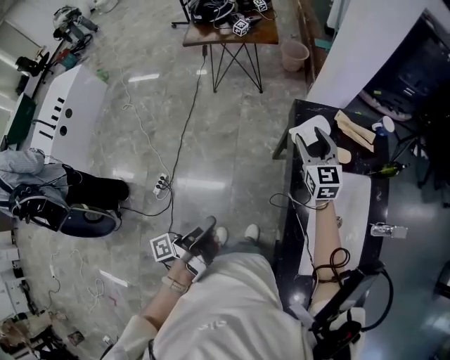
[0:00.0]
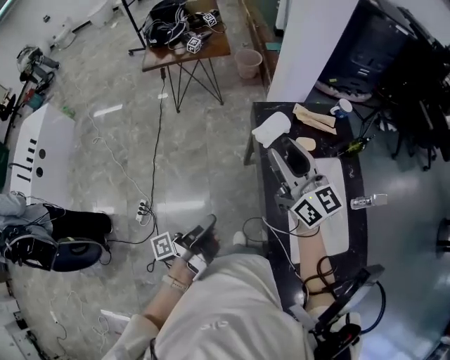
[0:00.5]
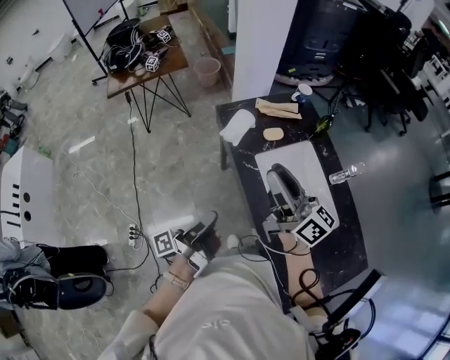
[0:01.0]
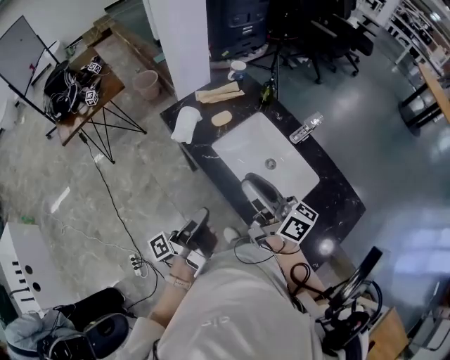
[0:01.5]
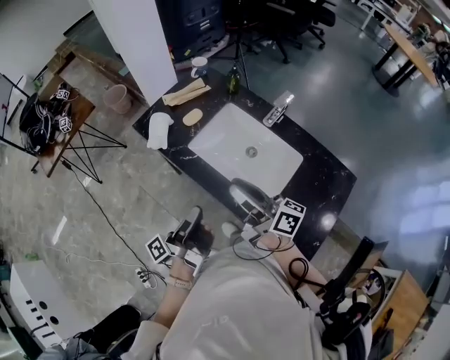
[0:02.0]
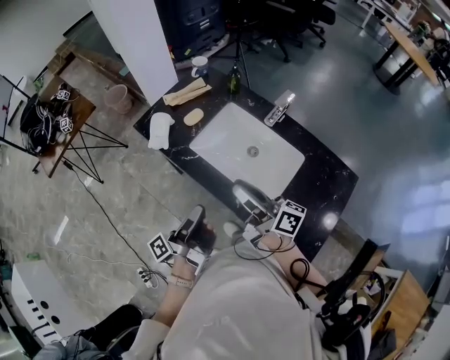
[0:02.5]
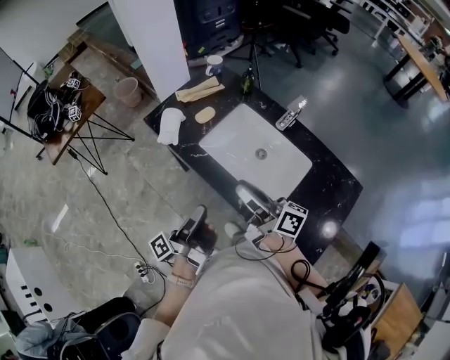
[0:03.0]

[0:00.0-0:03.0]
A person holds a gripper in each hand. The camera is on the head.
0:00.0 to 0:01.5: The right gripper changes place by approximately 35 cm, rolls clockwise, seen from behind, by some 50 degrees, and closes.
0:01.5 to 0:03.0: The right gripper moves downward, some 5 cm.

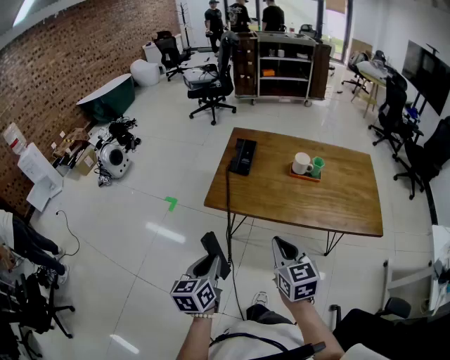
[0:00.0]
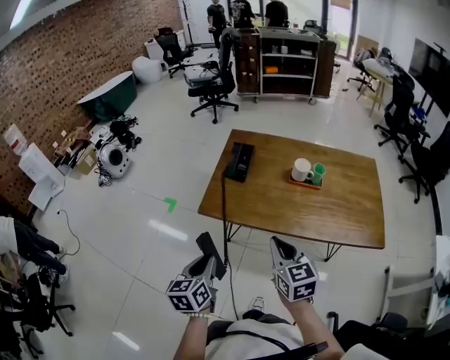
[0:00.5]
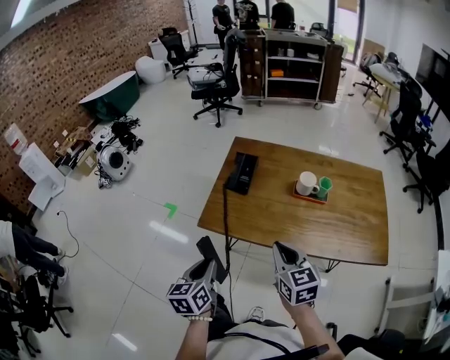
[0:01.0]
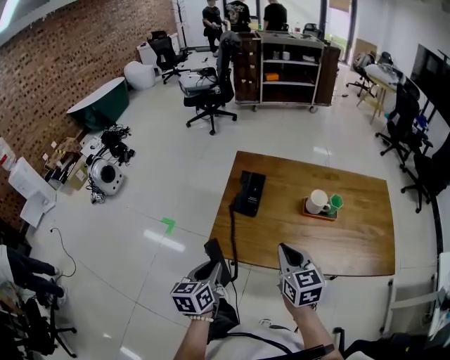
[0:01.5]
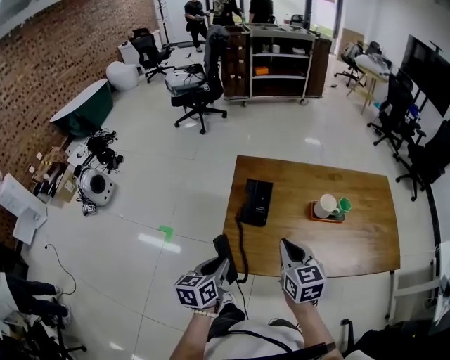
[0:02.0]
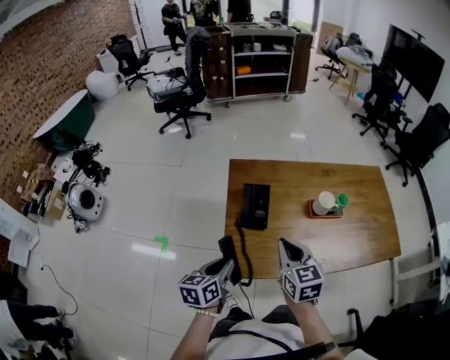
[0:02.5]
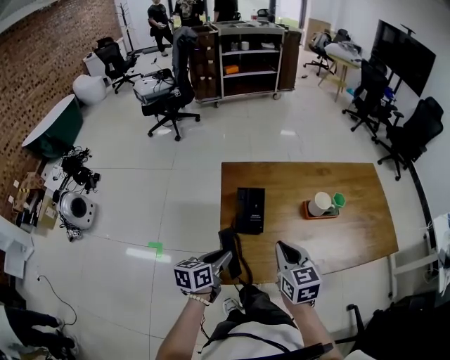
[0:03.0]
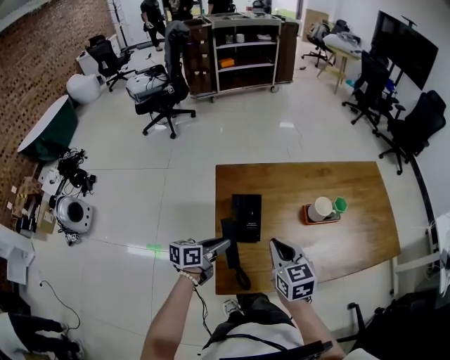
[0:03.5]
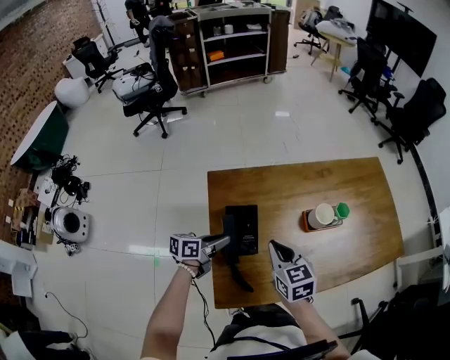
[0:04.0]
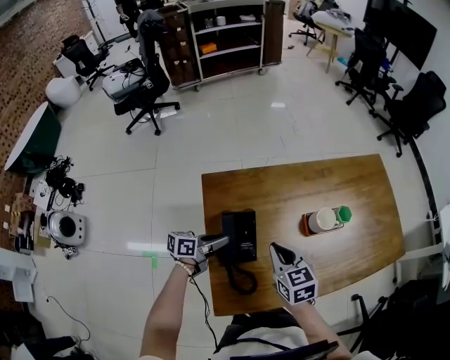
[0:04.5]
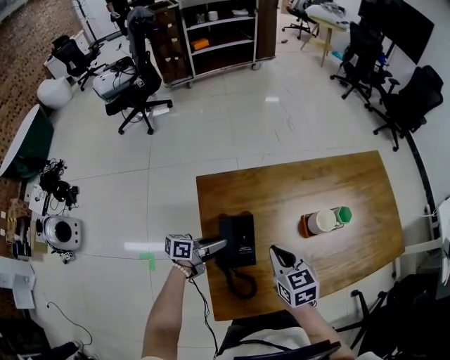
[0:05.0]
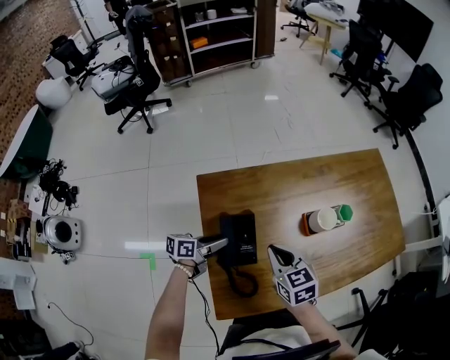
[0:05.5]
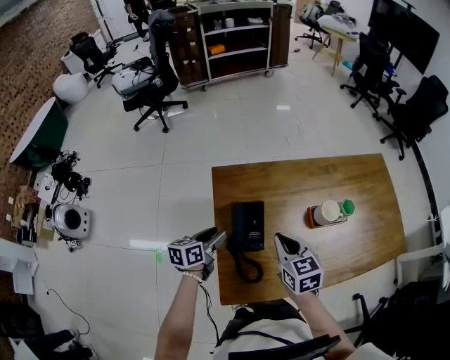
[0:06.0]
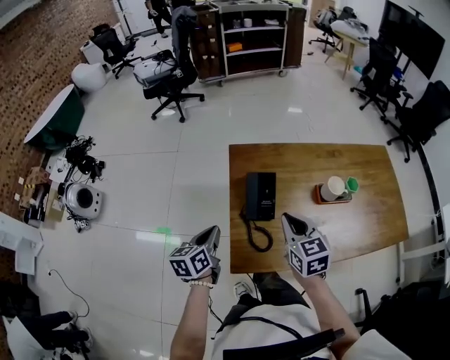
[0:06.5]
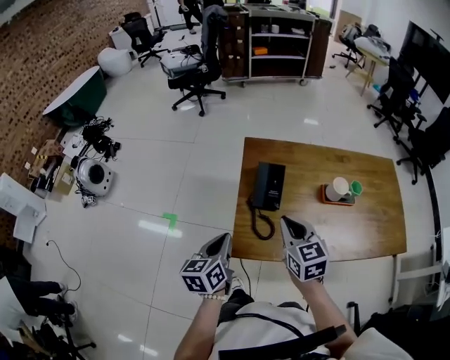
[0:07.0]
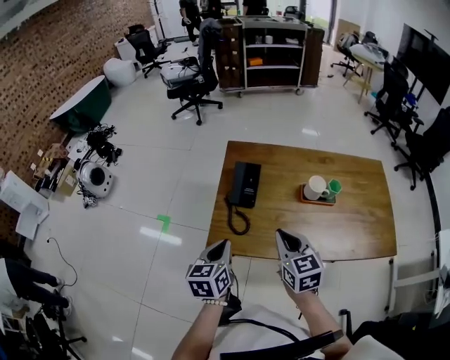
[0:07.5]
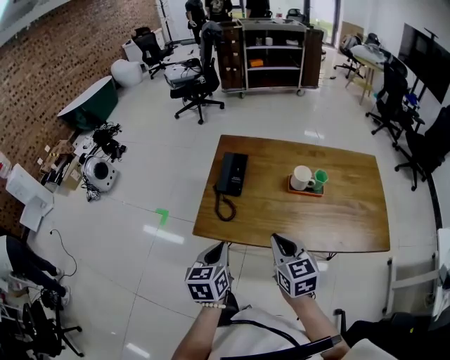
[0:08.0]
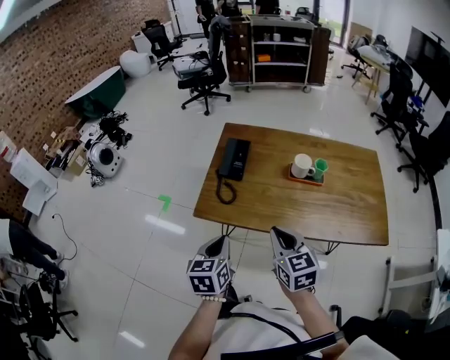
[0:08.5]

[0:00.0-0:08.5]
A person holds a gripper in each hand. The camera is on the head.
0:00.0 to 0:02.0: The grippers both shift forward by about 30 cm.
0:02.0 to 0:04.0: The left gripper changes place by about 25 cm, and rotates approximately 40 degrees. The right gripper shifts by some 15 cm.
0:04.0 to 0:06.5: The right gripper moves about 5 cm; the left gripper changes place by roughly 15 cm, rotates some 40 degrees, and opens, then closes once more.
0:06.5 to 0:08.5: The two grippers go roughly 30 cm backward and to the right. The left gripper changes its angle by approximately 20 degrees.

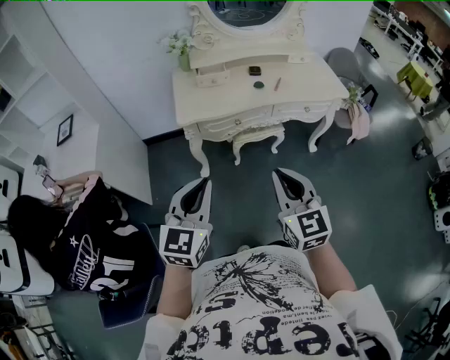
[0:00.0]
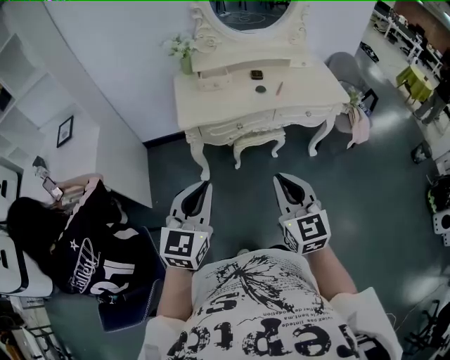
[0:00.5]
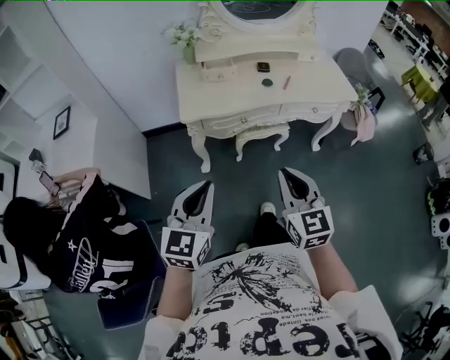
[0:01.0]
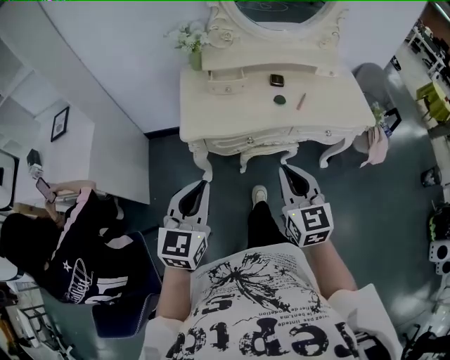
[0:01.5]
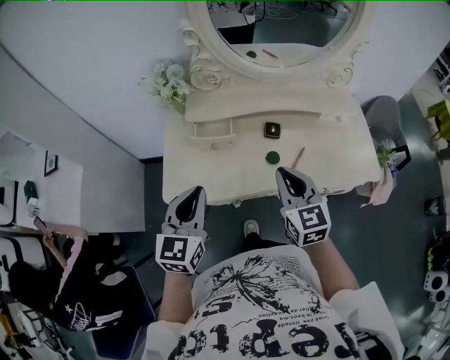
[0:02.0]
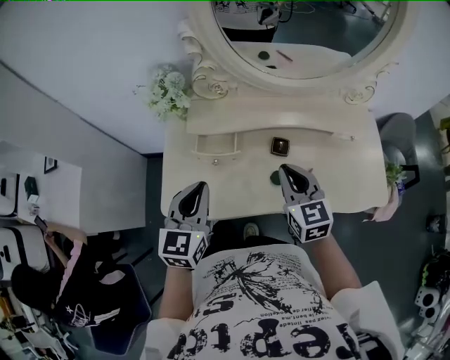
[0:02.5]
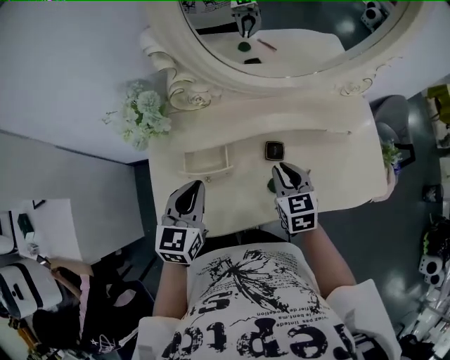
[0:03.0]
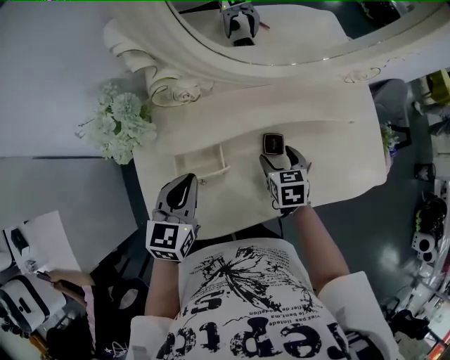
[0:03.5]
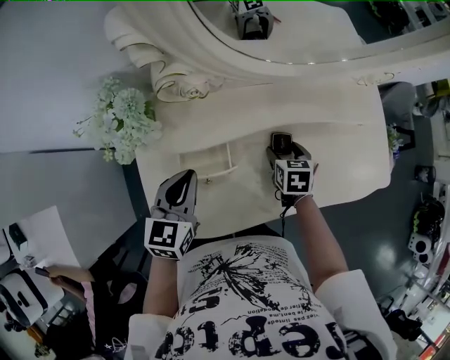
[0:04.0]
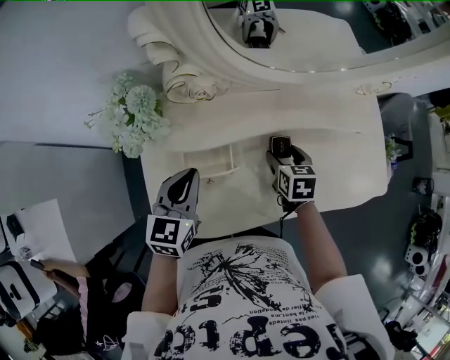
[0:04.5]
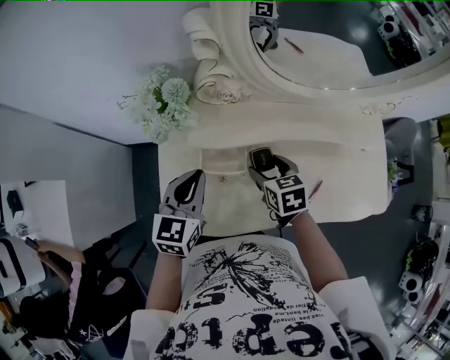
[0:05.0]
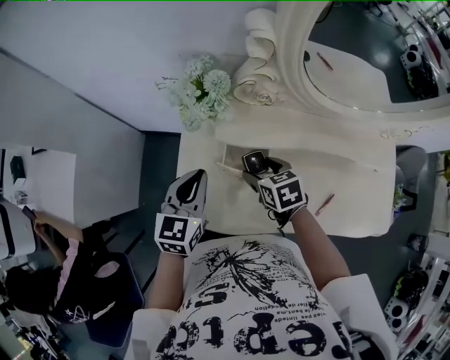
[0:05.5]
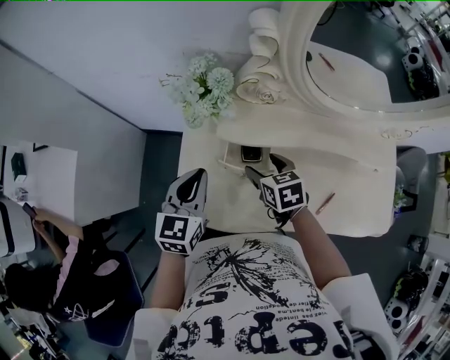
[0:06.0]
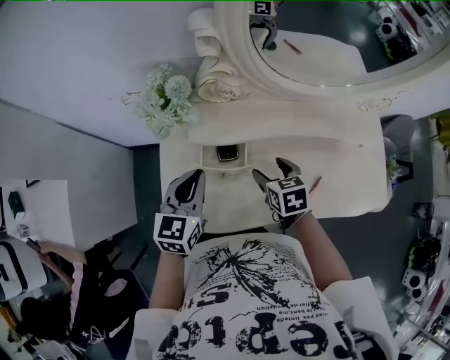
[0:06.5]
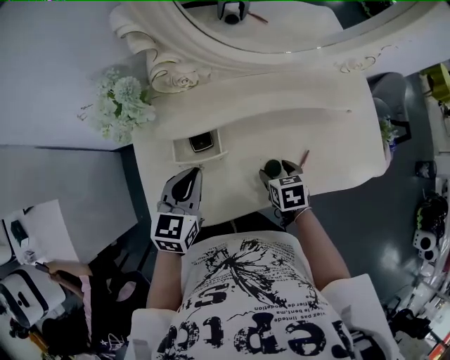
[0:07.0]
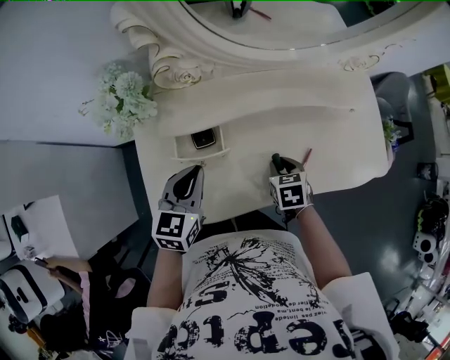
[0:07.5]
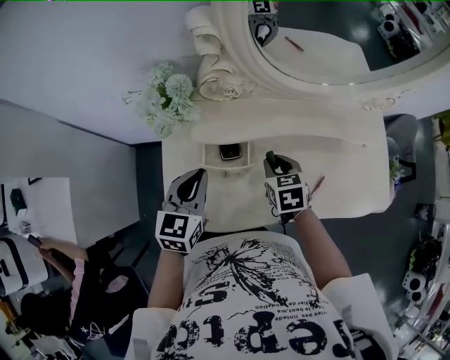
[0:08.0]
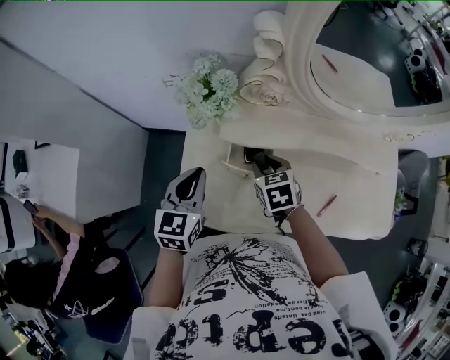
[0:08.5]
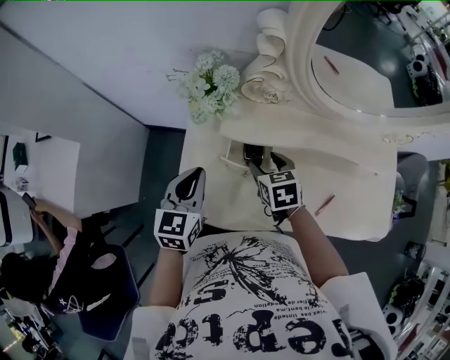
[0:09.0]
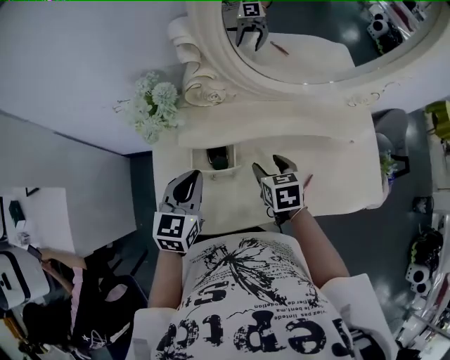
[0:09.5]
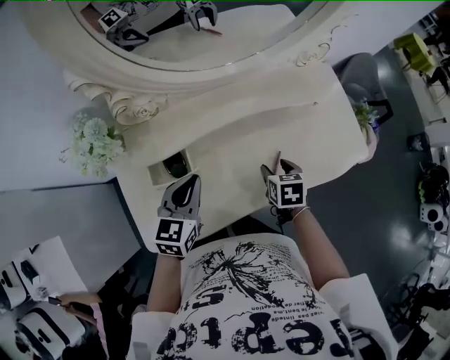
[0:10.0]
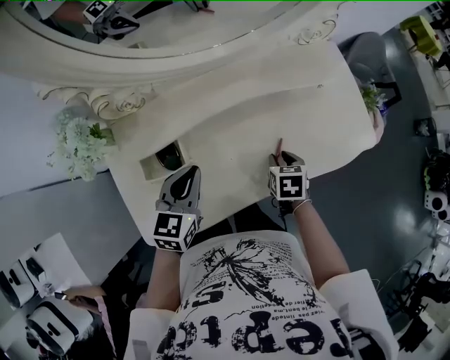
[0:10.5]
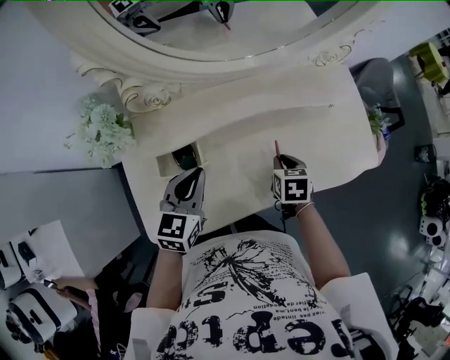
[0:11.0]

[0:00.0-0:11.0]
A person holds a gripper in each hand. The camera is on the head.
0:00.0 to 0:02.0: The pair of grippers is taken forward, some 40 cm.
0:02.0 to 0:03.5: The grippers both shift forward and downward by roughly 25 cm. The right gripper angles its fingers downward, by about 30 degrees, and opens.
0:03.5 to 0:05.5: The right gripper moves roughly 20 cm, and turns by about 30 degrees. Meanwhile the left gripper shifts by approximately 10 cm.
0:05.5 to 0:07.5: The left gripper shifts by about 10 cm, while the right gripper shifts by some 20 cm, swivels roughly 30 degrees, and closes up.
0:07.5 to 0:09.0: The right gripper shifts by roughly 25 cm, turns by some 20 degrees, and opens its fingers, while the left gripper moves roughly 15 cm, and swivels about 20 degrees.
0:09.0 to 0:11.0: The left gripper moves about 20 cm, and changes its angle by roughly 30 degrees, while the right gripper changes place by some 30 cm, changes its angle by some 40 degrees, and closes.

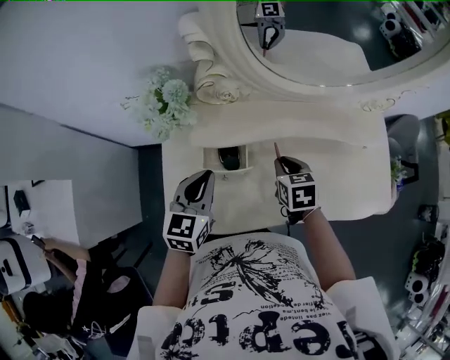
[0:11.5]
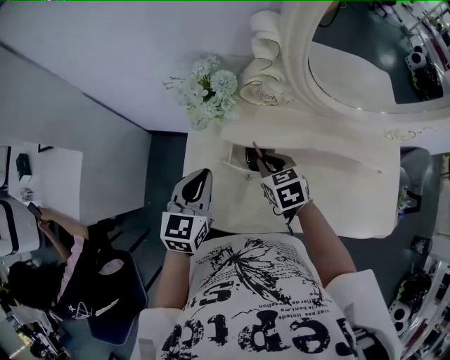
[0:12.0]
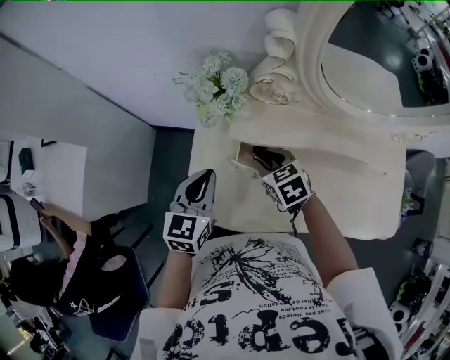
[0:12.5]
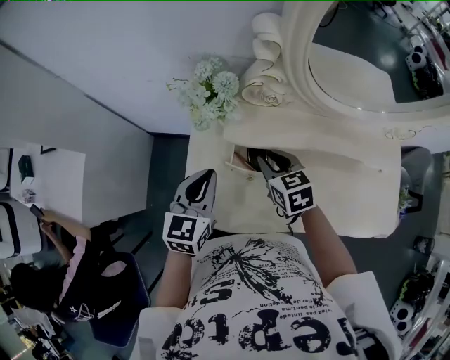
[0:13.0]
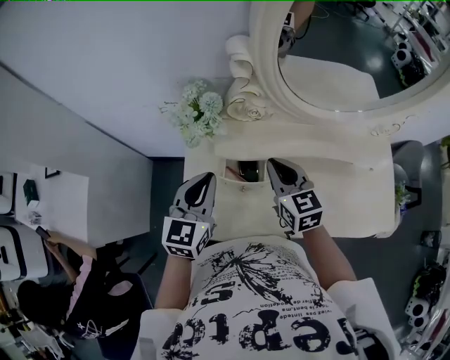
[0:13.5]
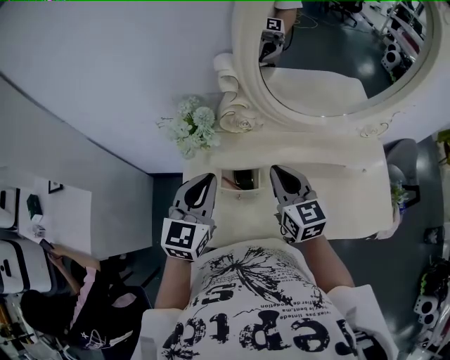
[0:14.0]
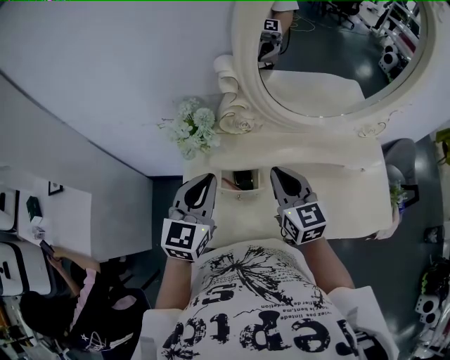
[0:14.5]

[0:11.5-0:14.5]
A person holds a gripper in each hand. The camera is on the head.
0:11.5 to 0:13.0: The right gripper is displaced to the left by about 15 cm, and changes its angle by roughly 20 degrees. Meanwhile the left gripper moves to the left, some 10 cm.
0:13.0 to 0:14.5: The right gripper shifts approximately 15 cm upward and to the right, and changes its angle by about 30 degrees, while the left gripper travels upward by roughly 10 cm.
